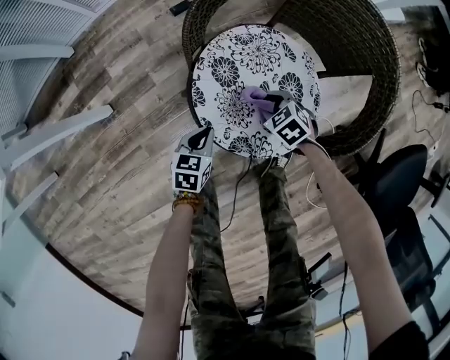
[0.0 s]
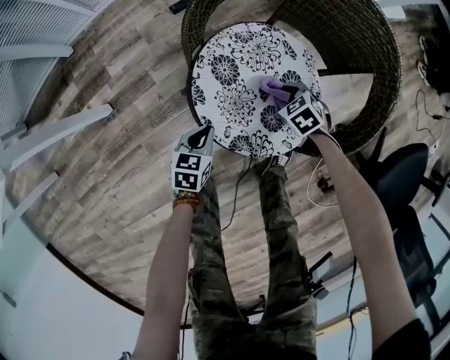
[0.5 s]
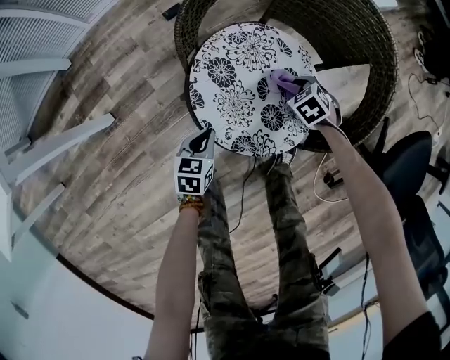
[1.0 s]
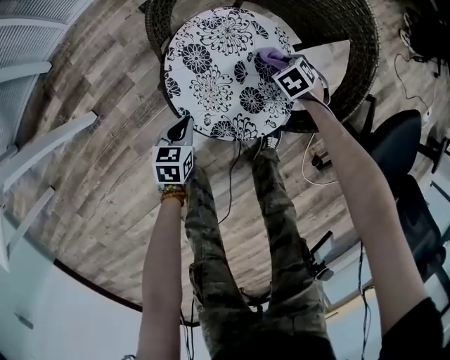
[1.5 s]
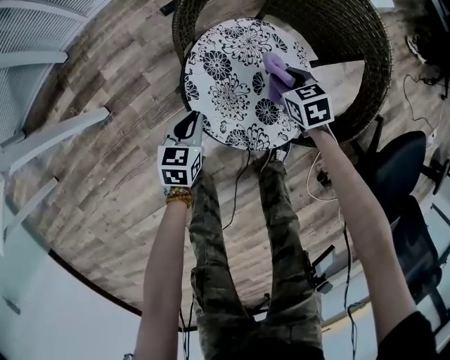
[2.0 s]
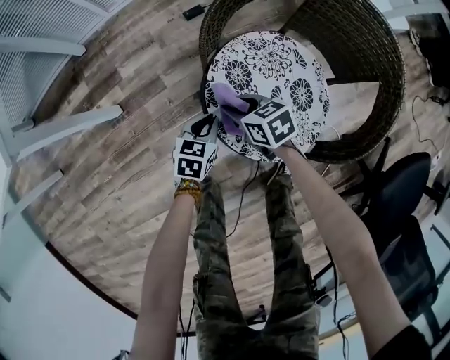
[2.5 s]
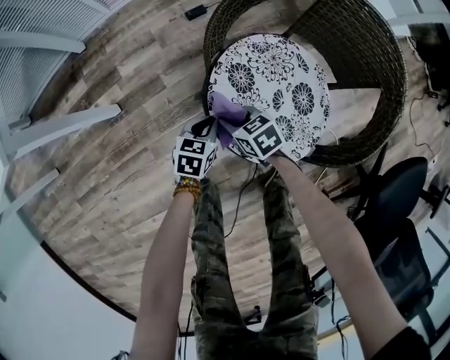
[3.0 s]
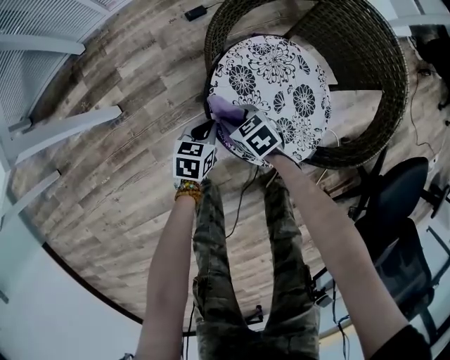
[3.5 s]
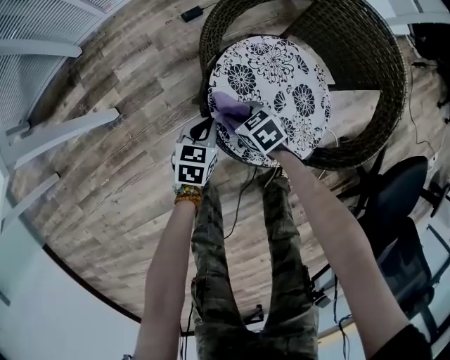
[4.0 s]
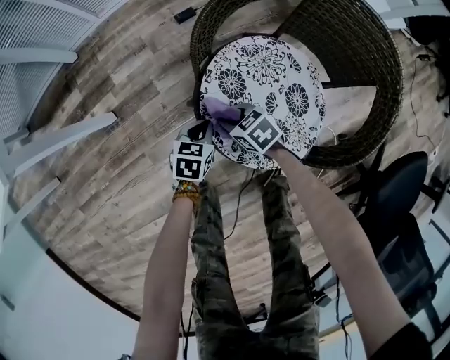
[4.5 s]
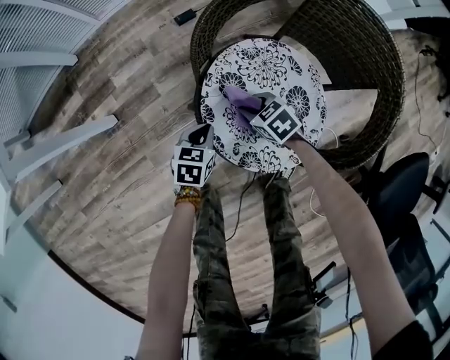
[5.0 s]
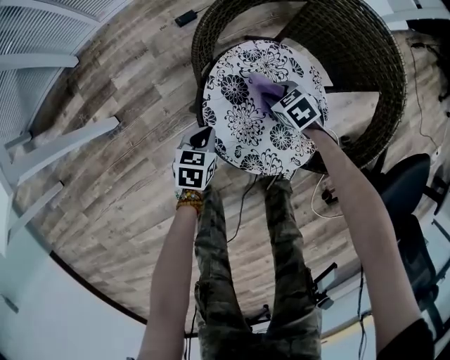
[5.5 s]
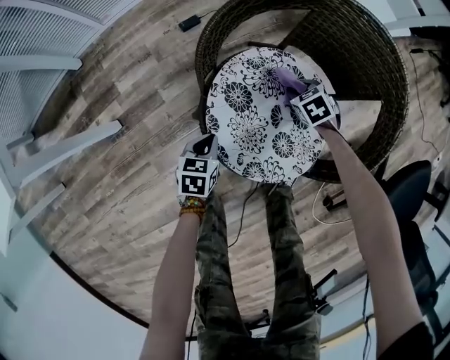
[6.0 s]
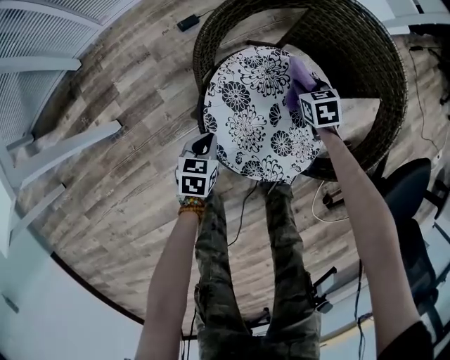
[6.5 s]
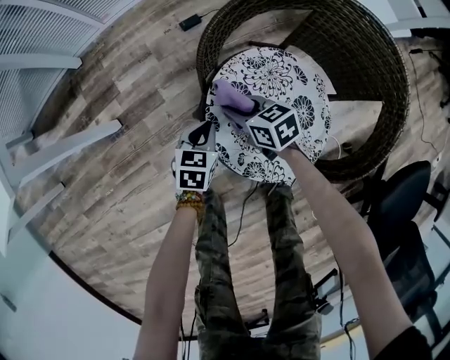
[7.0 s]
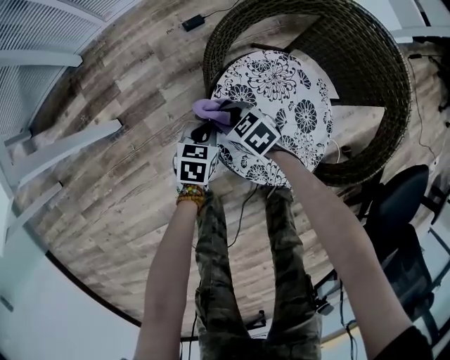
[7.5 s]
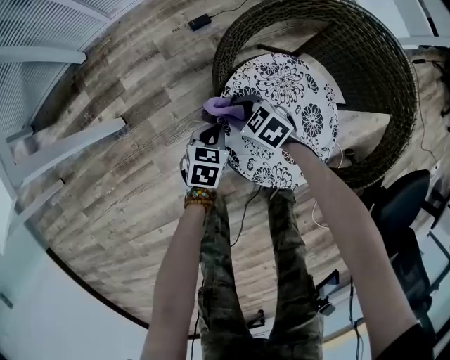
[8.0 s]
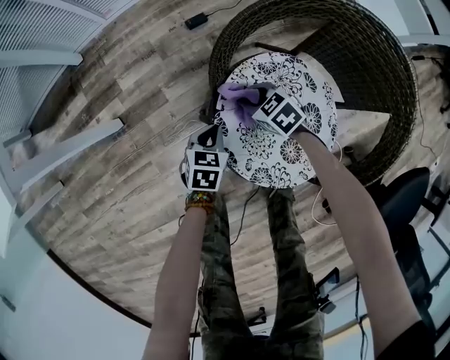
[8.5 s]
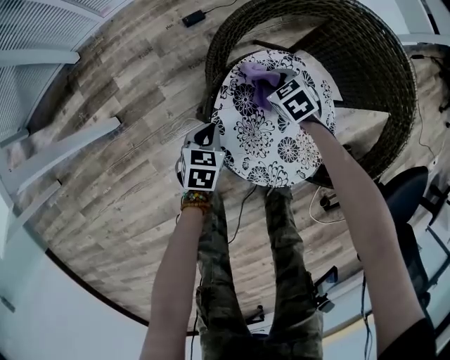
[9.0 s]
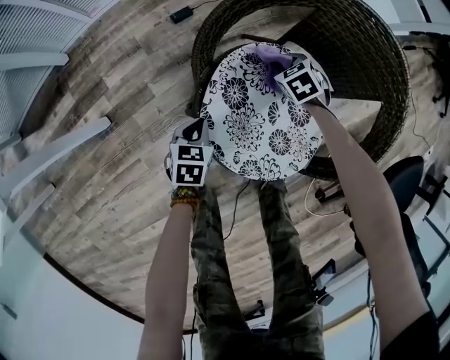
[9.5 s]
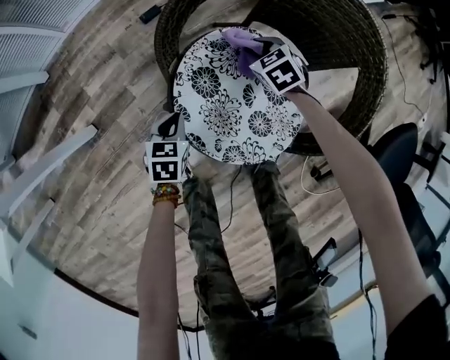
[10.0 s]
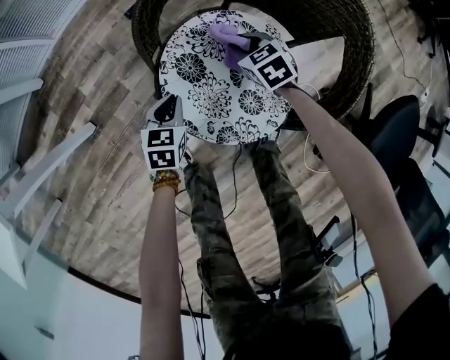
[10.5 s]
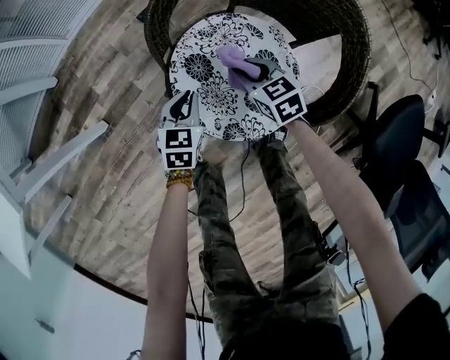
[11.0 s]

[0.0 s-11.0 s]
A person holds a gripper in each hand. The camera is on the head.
0.0 to 2.0 s: The right gripper ends up about 10 cm from where it was, and rotates approximately 30 degrees, while the left gripper shifts by approximately 5 cm.
2.0 to 3.5 s: The left gripper shifts by approximately 5 cm. Meanwhile the right gripper moves to the left, some 20 cm, and changes its angle by some 20 degrees.
3.5 to 5.5 s: The right gripper shifts roughly 15 cm to the right.
5.5 to 7.5 s: The right gripper moves roughly 20 cm.
7.5 to 9.0 s: The right gripper shifts roughly 15 cm to the right and forward.
9.0 to 11.0 s: The right gripper travels upward and backward by about 15 cm, and turns by roughly 30 degrees, while the left gripper travels upward and to the right by approximately 10 cm.

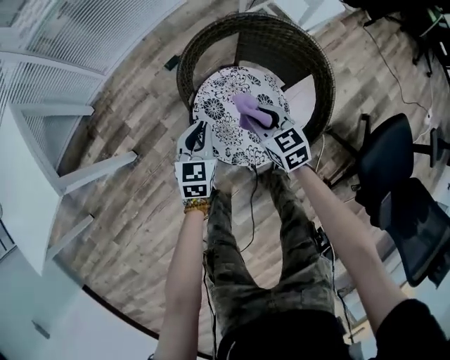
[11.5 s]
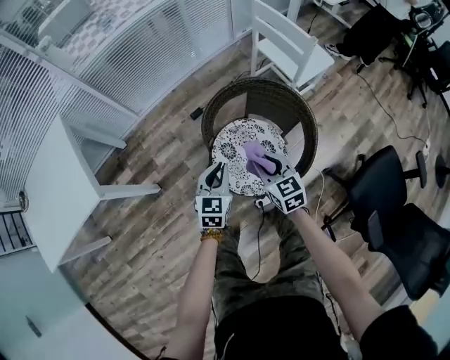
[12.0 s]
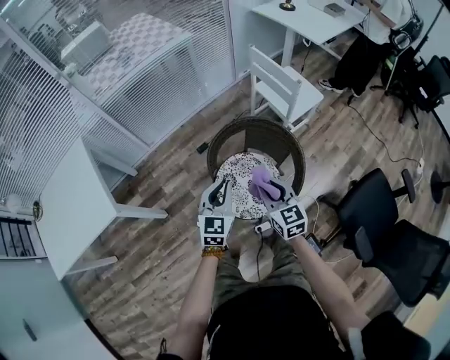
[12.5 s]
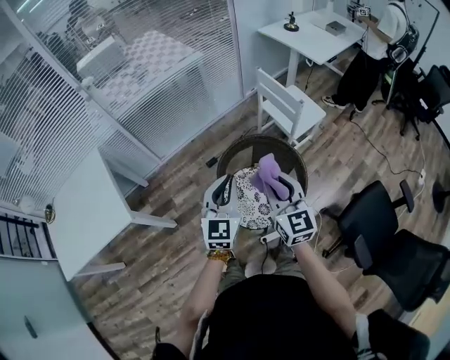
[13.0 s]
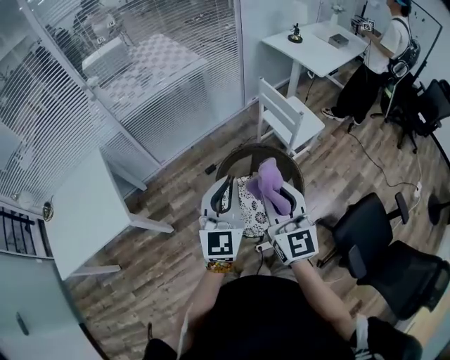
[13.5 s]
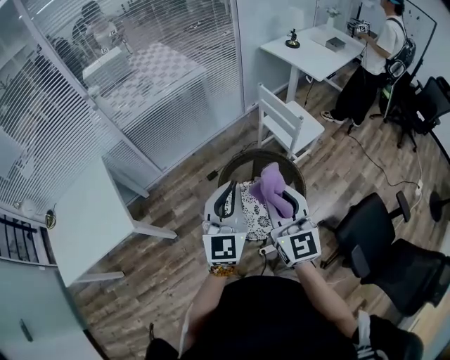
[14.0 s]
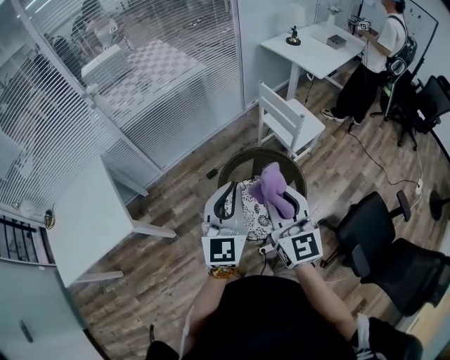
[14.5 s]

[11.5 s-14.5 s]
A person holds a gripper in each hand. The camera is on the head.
11.5 to 13.0 s: Both grippers travel together upward, about 50 cm. The left gripper changes its angle by some 30 degrees, while the right gripper points its fingers about 30 degrees further upward.
13.0 to 14.5 s: The grippers both shift upward by approximately 10 cm.

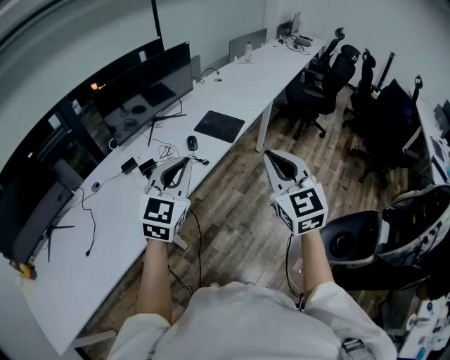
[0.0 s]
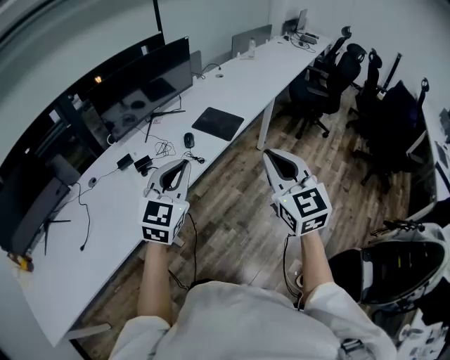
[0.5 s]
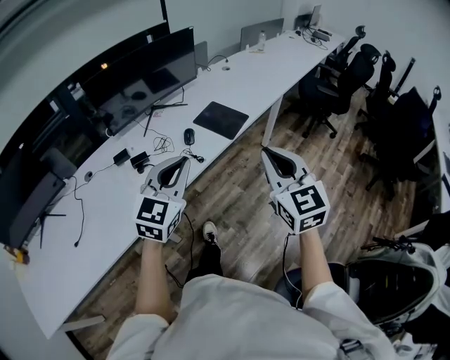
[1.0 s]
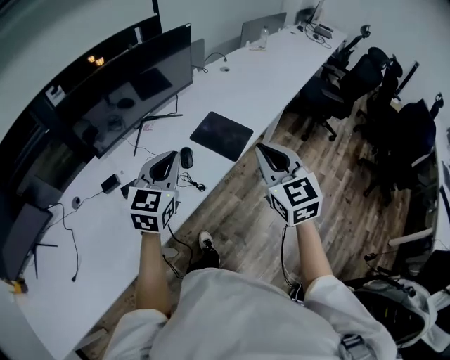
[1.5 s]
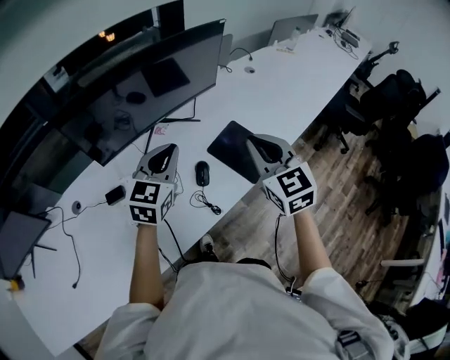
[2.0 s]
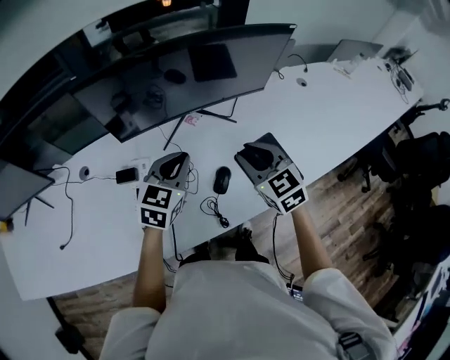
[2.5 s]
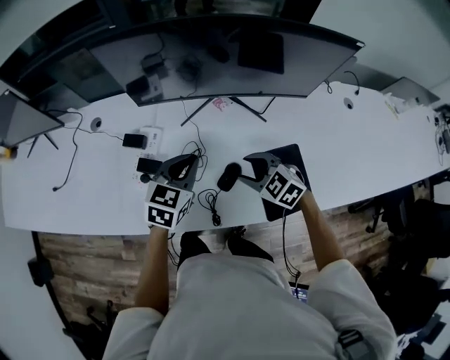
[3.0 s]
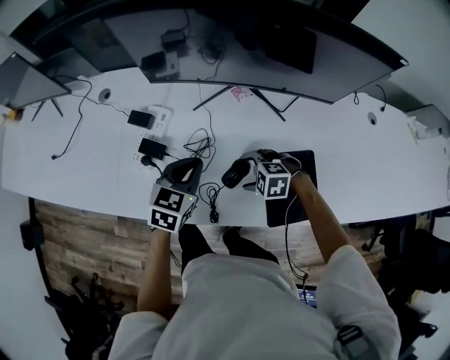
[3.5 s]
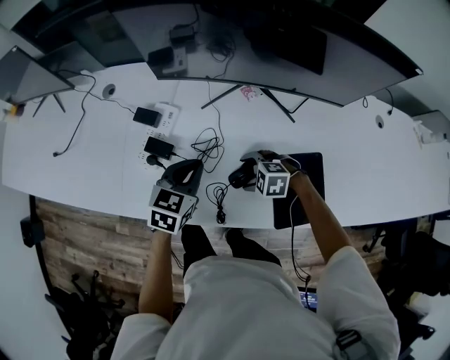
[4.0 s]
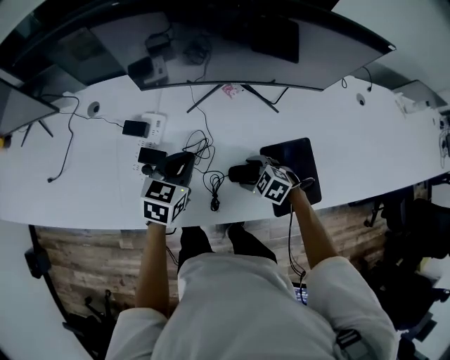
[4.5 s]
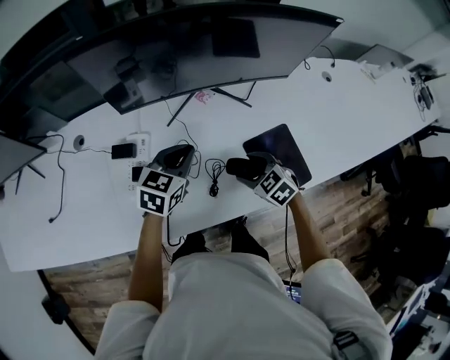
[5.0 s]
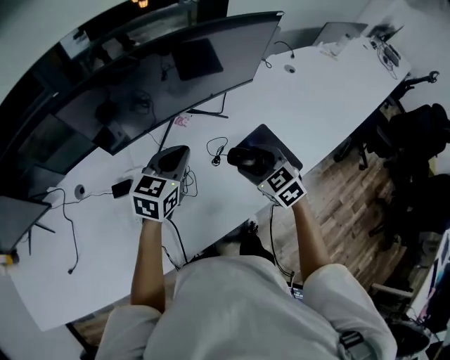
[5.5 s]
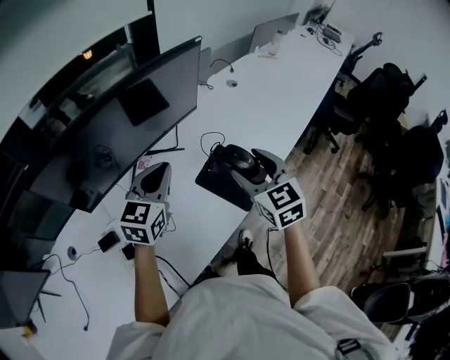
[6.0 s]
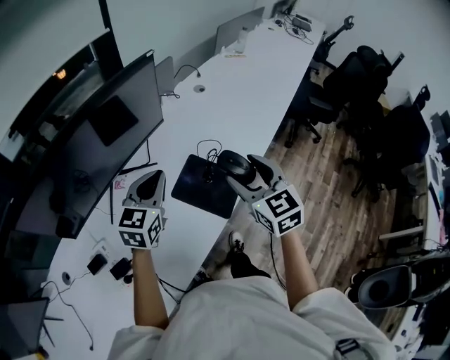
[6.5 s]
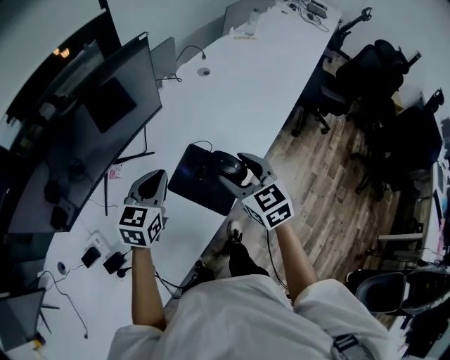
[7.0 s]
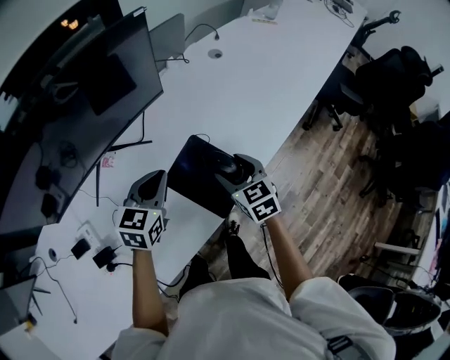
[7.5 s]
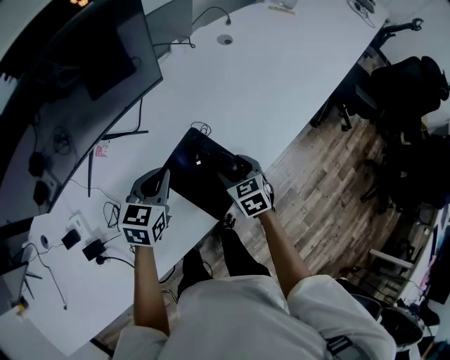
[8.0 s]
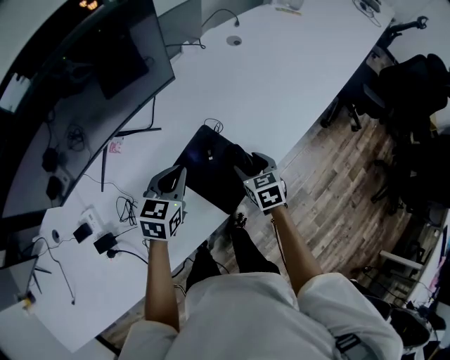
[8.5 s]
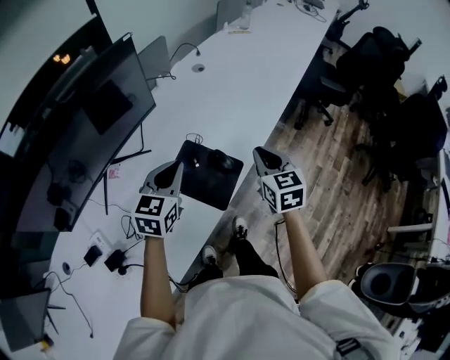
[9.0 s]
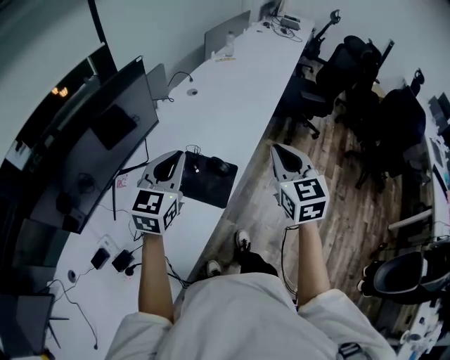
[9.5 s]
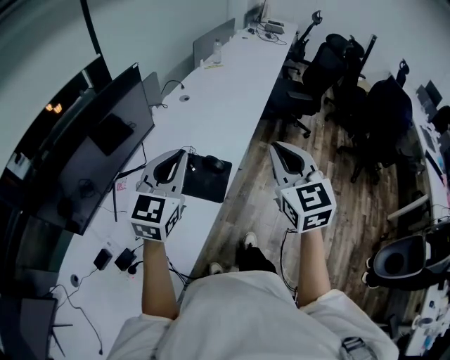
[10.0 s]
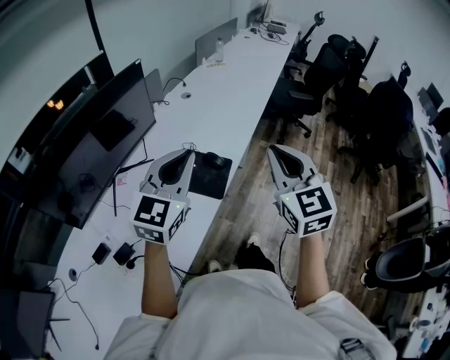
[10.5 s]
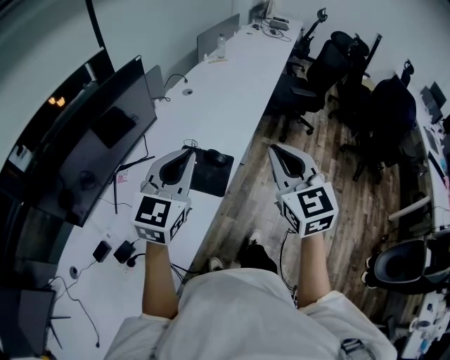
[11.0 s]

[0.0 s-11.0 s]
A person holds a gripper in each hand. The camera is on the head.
0.0 to 2.0 s: The two grippers travel together, forward, approximately 50 cm. The right gripper changes its angle by some 20 degrees. Meanwhile the left gripper changes its angle by roughly 20 degrees.
2.0 to 3.5 s: The left gripper is displaced downward by roughly 20 cm, and turns by some 40 degrees. Meanwhile the right gripper is displaced downward by some 35 cm, tips its fingers downward by roughly 50 degrees, and opens its fingers.
3.5 to 5.5 s: The left gripper shifts some 10 cm upward, and swivels approximately 30 degrees; the right gripper is displaced upward by approximately 15 cm, and turns by roughly 80 degrees.
5.5 to 7.5 s: Both grippers travel together to the right and forward, approximately 20 cm. The right gripper rotates some 30 degrees.
7.5 to 9.0 s: The right gripper heads to the right and upward, covering some 15 cm, turns by roughly 20 degrees, and closes up. Meanwhile the left gripper moves to the right and upward, approximately 10 cm.
9.0 to 11.0 s: The left gripper travels upward and backward by approximately 25 cm, and rotates about 30 degrees. Meanwhile the right gripper is displaced backward and upward by approximately 30 cm, and changes its angle by some 20 degrees.

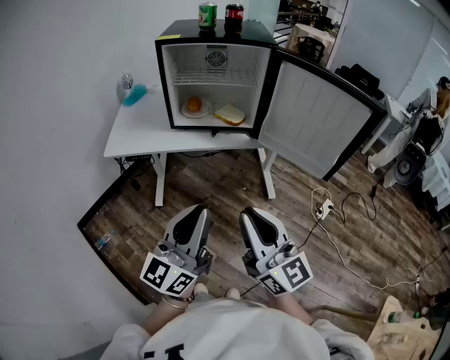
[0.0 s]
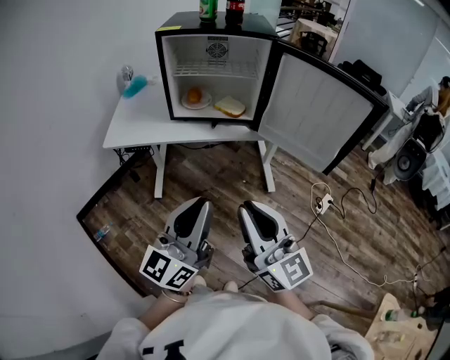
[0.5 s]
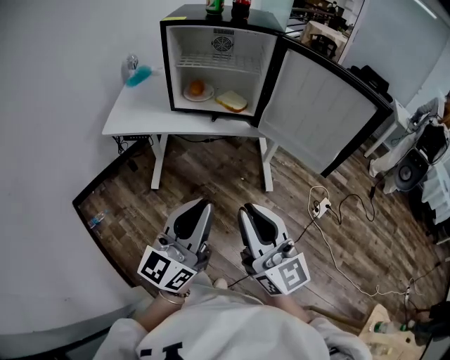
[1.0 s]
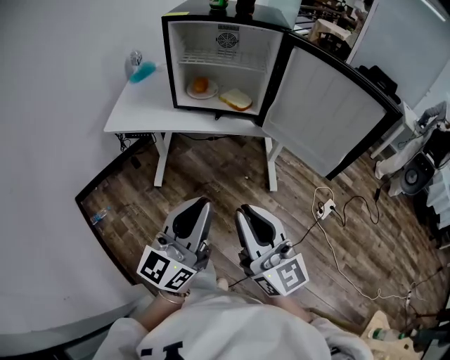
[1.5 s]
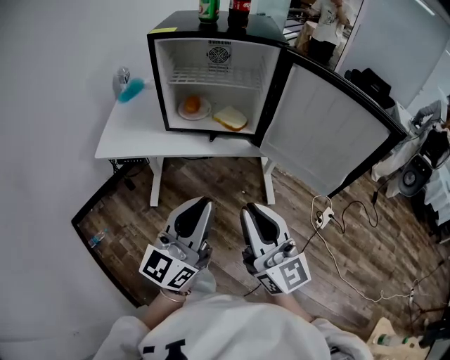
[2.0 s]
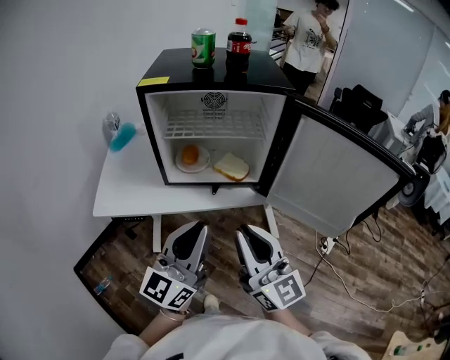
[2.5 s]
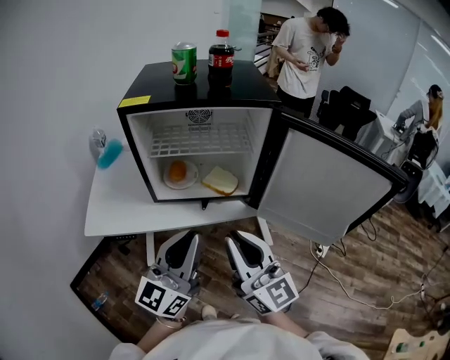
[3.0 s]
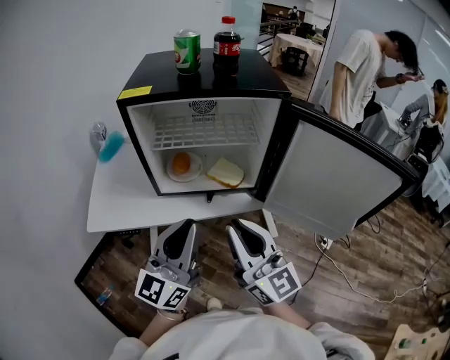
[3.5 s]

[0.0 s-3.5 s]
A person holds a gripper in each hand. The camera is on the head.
0.0 to 2.0 s: The two grippers go about 10 cm forward.
2.0 to 3.5 s: Both grippers travel together forward, about 20 cm.
